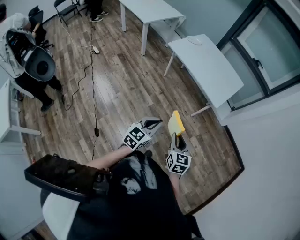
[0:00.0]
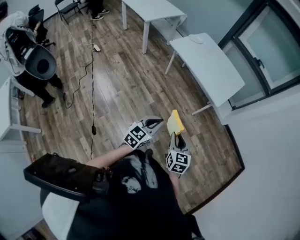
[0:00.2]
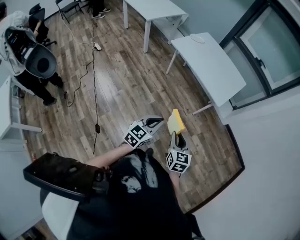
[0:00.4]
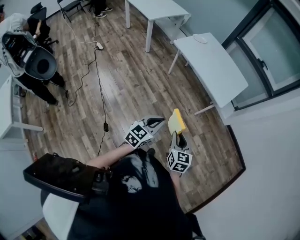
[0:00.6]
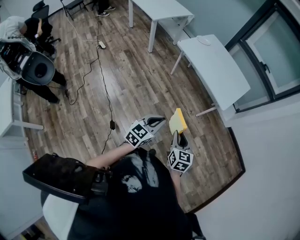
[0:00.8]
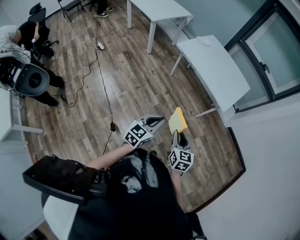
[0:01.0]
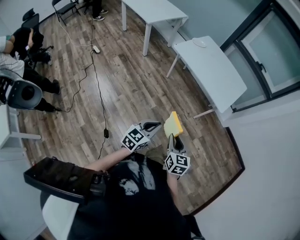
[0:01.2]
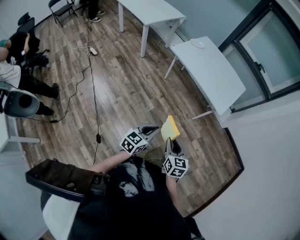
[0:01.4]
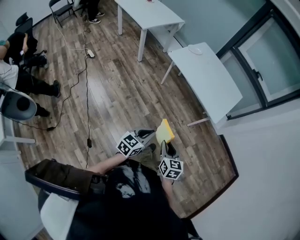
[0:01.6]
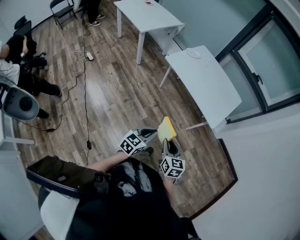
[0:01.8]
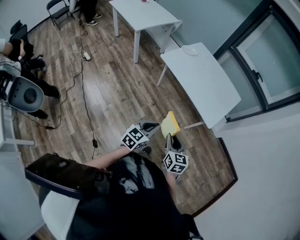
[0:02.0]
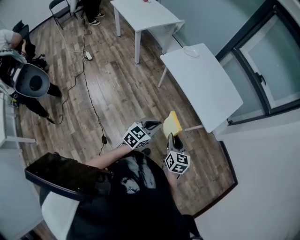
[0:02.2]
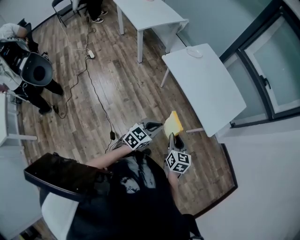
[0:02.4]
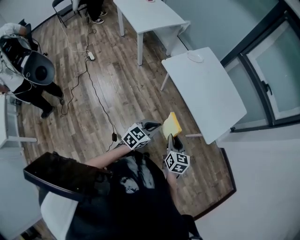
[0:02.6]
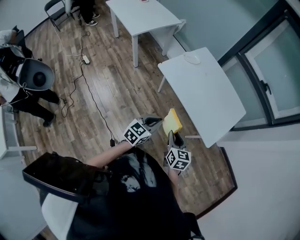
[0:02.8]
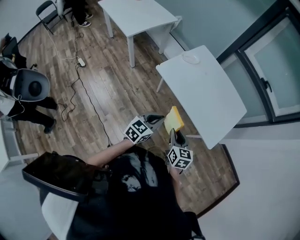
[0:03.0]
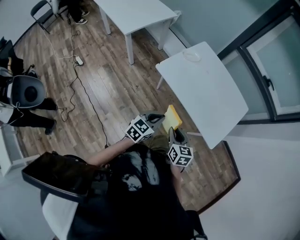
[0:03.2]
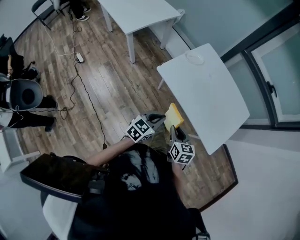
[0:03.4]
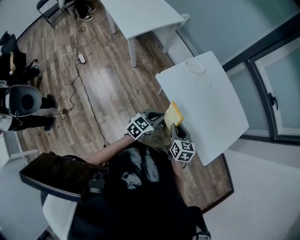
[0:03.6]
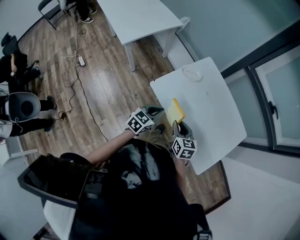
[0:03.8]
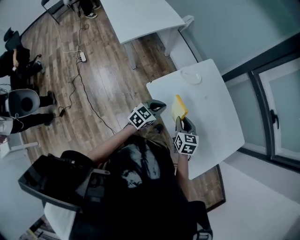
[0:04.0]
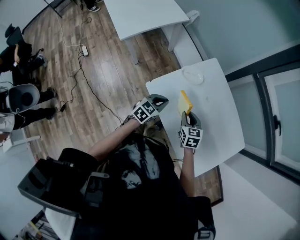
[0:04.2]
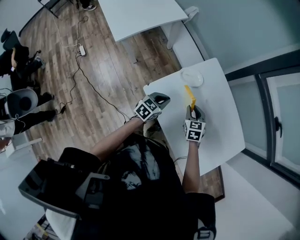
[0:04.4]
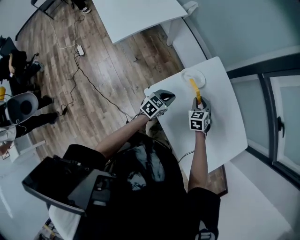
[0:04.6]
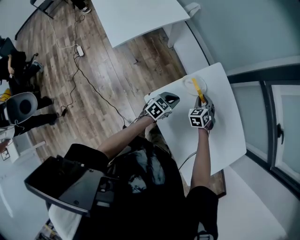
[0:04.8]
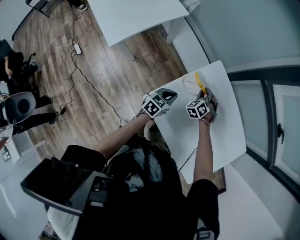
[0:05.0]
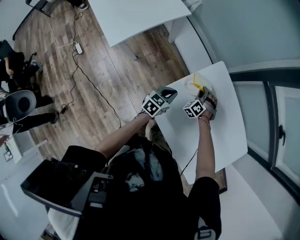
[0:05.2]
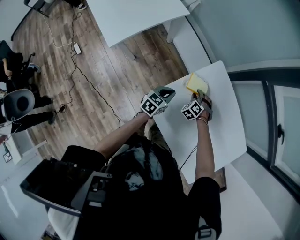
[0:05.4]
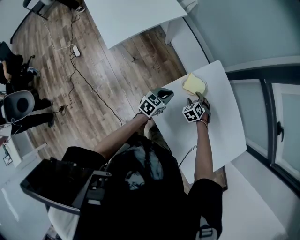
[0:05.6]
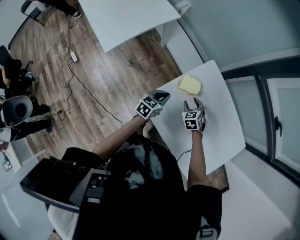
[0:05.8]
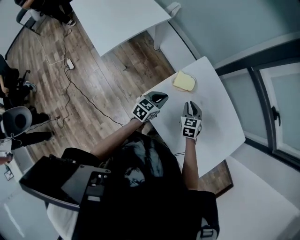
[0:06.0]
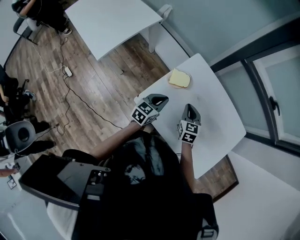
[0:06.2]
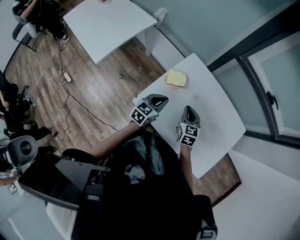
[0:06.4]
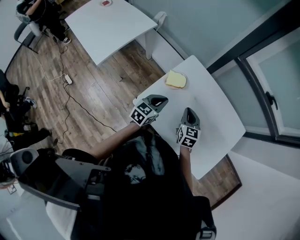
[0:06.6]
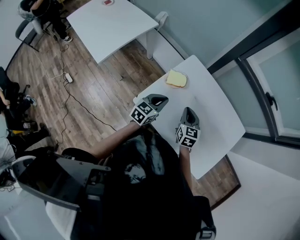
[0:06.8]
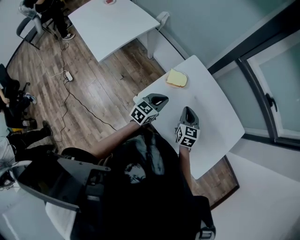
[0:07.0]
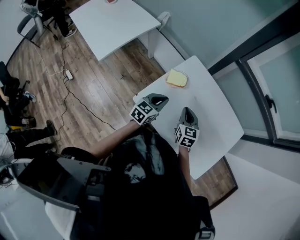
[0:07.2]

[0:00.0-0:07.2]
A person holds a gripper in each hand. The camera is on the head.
0.0 to 1.4 s: The two grippers go some 10 cm to the left.
1.4 to 2.8 s: The grippers both shift forward by approximately 35 cm.
2.8 to 4.4 s: The pair of grippers is taken forward, approximately 50 cm. The right gripper turns by some 30 degrees.
4.4 to 5.8 s: The right gripper goes roughly 10 cm forward, downward and to the left, and opens its fingers. Meanwhile the left gripper is displaced forward and to the left by approximately 10 cm.
5.8 to 7.2 s: The left gripper is displaced upward and to the right by about 15 cm. Meanwhile the right gripper heads upward, backward and to the right, covering roughly 20 cm, swivels some 40 degrees, and closes up.

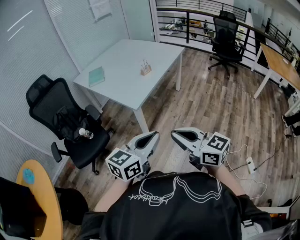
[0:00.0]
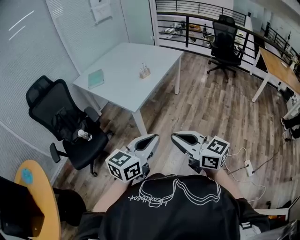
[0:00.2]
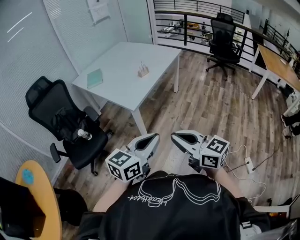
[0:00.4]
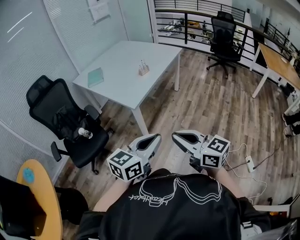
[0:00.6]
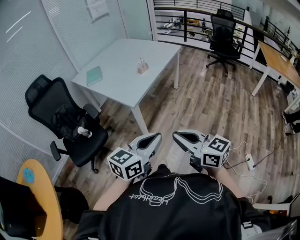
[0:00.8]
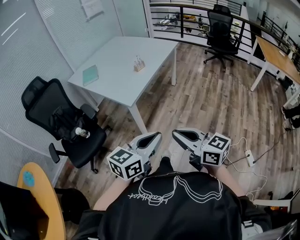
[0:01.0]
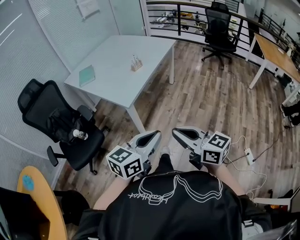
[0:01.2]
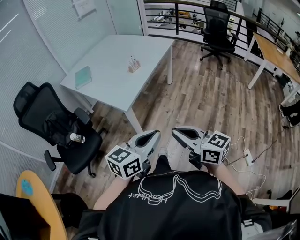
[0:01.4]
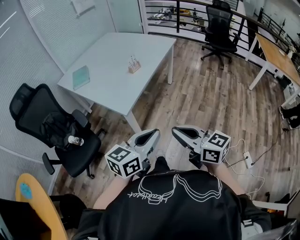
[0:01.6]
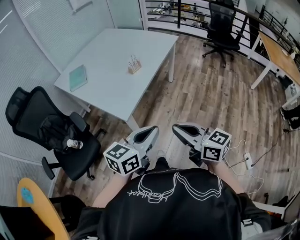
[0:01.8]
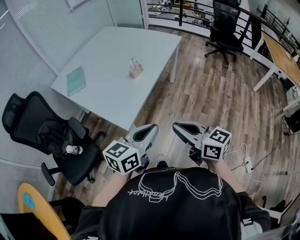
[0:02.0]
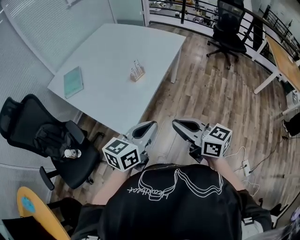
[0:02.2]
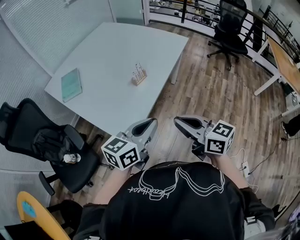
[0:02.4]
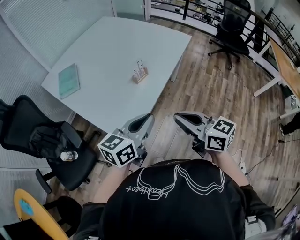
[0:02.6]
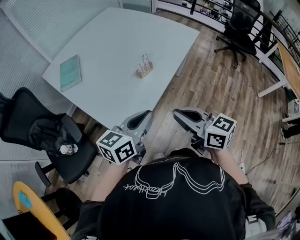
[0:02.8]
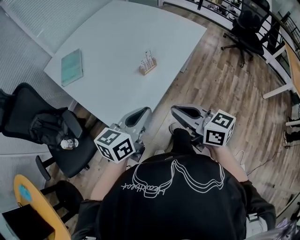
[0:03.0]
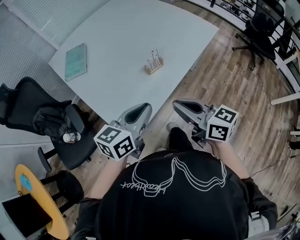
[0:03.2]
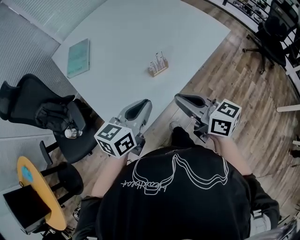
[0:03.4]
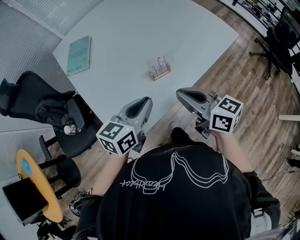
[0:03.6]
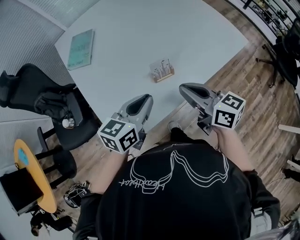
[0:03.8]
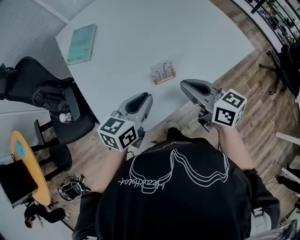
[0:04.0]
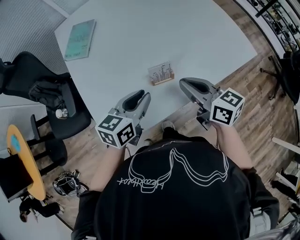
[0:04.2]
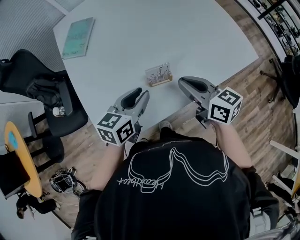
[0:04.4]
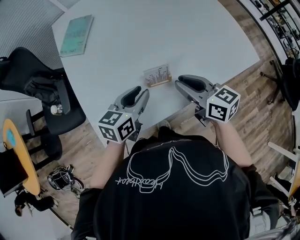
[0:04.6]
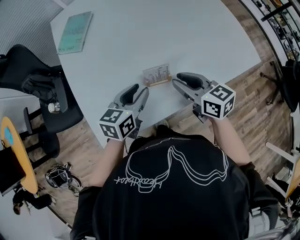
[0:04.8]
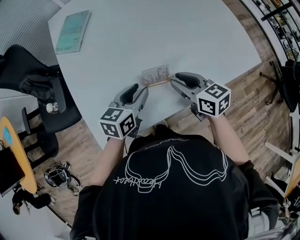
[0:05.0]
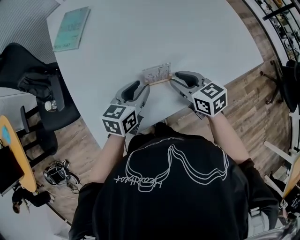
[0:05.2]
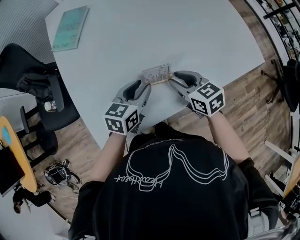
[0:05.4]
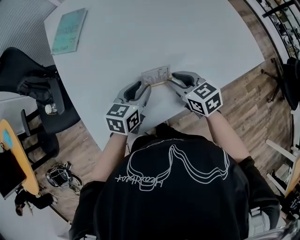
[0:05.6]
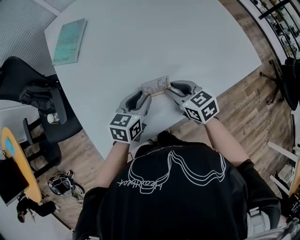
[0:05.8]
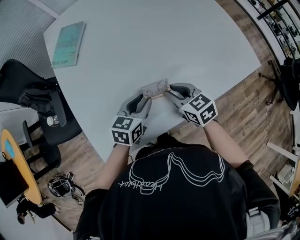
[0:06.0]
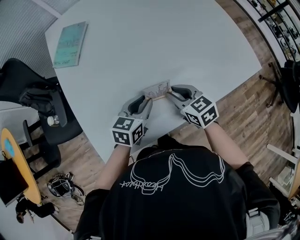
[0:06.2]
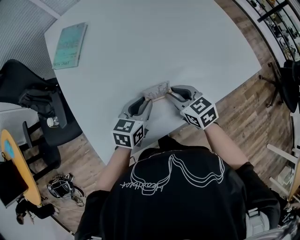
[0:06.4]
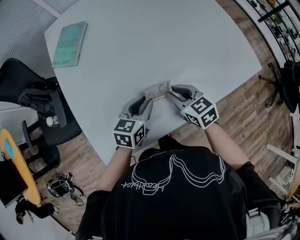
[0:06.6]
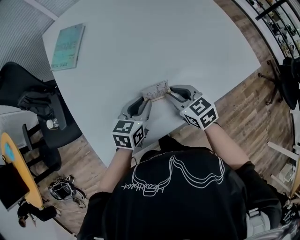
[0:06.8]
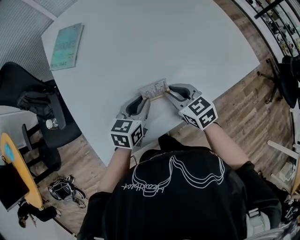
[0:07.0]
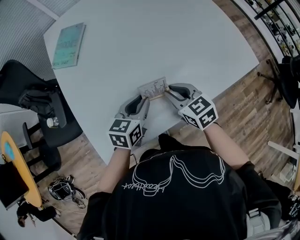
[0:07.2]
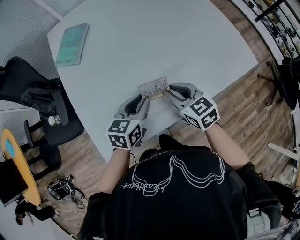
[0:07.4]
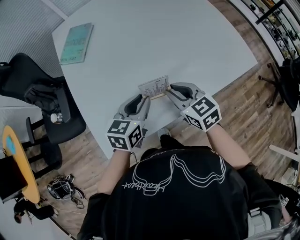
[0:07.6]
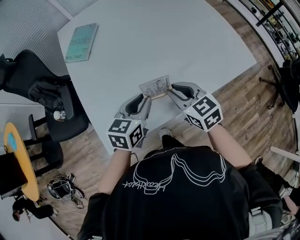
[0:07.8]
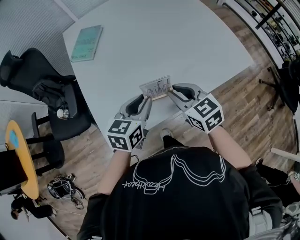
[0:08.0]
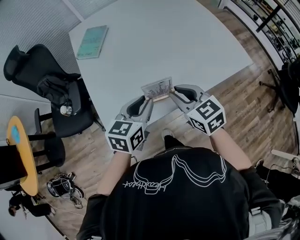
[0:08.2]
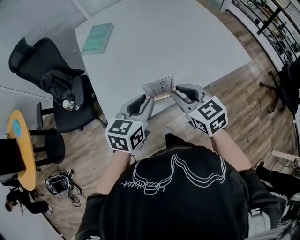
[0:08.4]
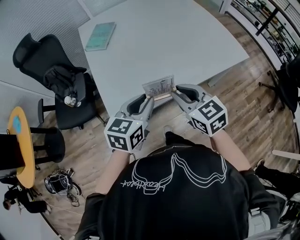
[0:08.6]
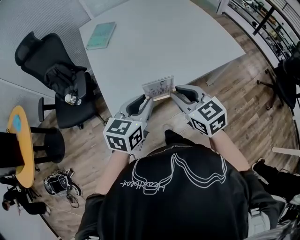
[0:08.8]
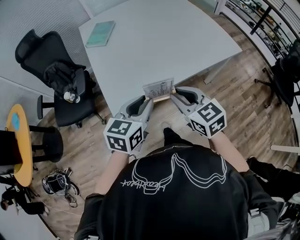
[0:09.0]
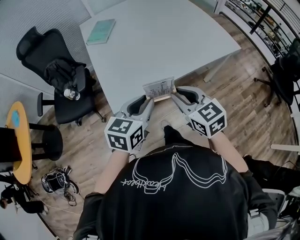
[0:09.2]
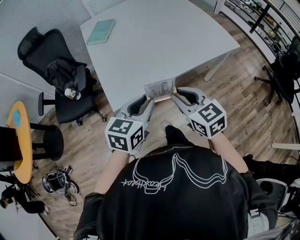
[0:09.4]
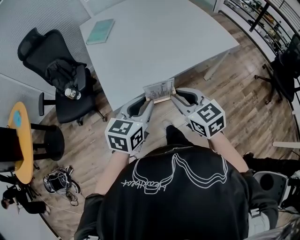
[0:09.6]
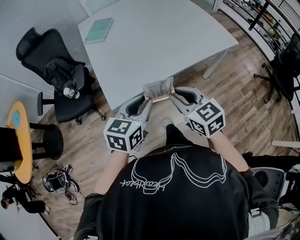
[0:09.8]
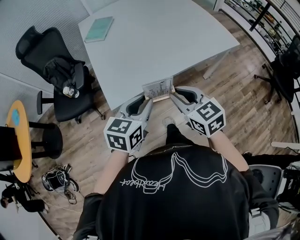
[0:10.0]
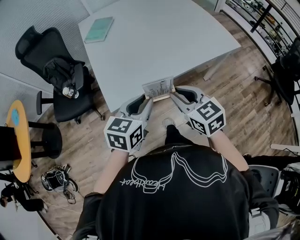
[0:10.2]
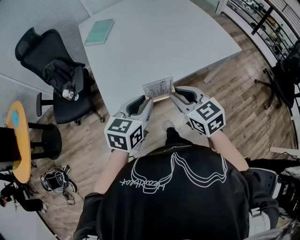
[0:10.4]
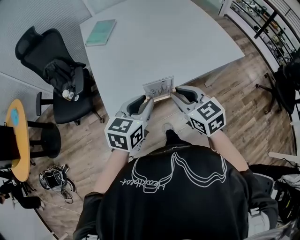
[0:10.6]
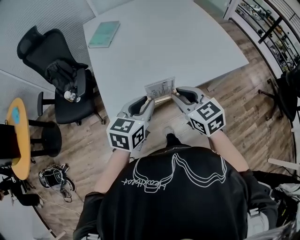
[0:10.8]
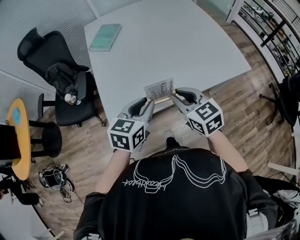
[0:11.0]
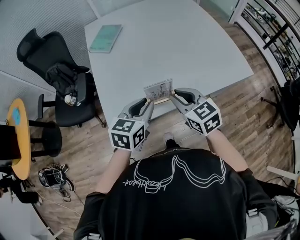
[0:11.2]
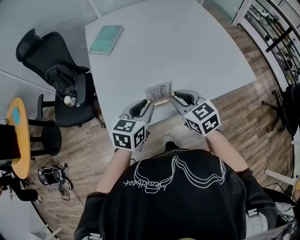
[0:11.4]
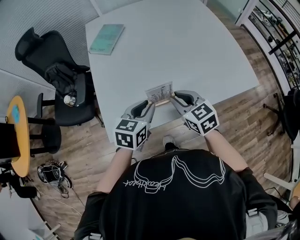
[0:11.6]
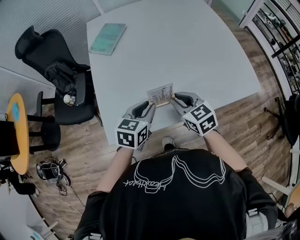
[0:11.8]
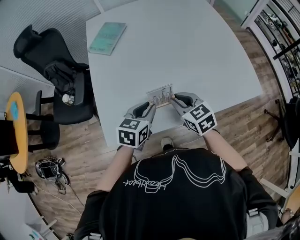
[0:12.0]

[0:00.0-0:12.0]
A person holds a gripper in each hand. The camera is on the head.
0.0 to 1.6 s: The grippers both shift forward by approximately 10 cm.
1.6 to 3.0 s: Both grippers travel together forward, about 35 cm.
3.0 to 4.4 s: The right gripper heads forward, covering approximately 30 cm, and changes its angle by about 20 degrees; the left gripper travels forward and downward by roughly 25 cm, and changes its angle by approximately 30 degrees.
4.4 to 6.0 s: Both grippers travel together downward, about 10 cm. The right gripper turns by roughly 30 degrees.
6.0 to 7.6 s: Both grippers move upward, approximately 5 cm.
7.6 to 9.0 s: Both grippers travel together backward and upward, roughly 30 cm.
9.0 to 10.4 s: The grippers stay close to where they were, moving slightly.
10.4 to 12.0 s: Both grippers move forward and downward, some 25 cm.

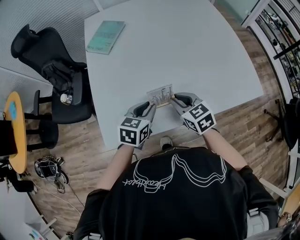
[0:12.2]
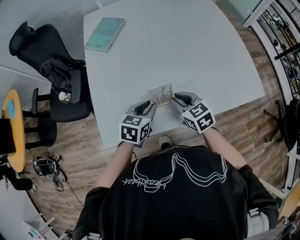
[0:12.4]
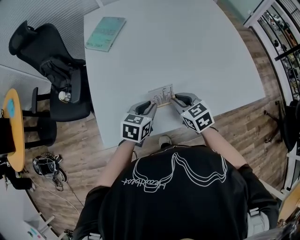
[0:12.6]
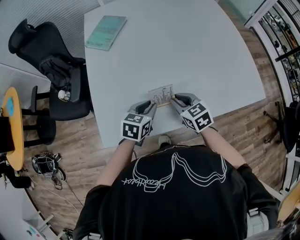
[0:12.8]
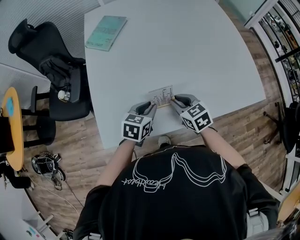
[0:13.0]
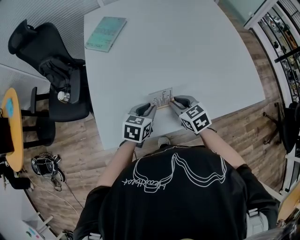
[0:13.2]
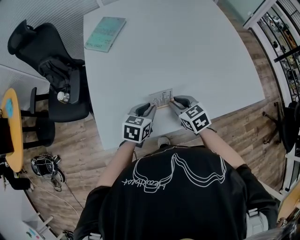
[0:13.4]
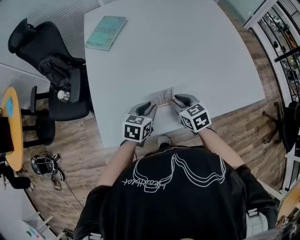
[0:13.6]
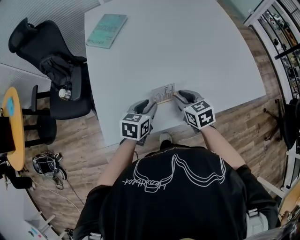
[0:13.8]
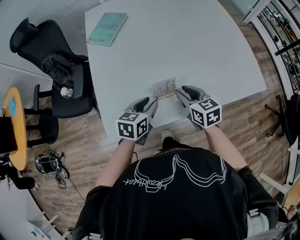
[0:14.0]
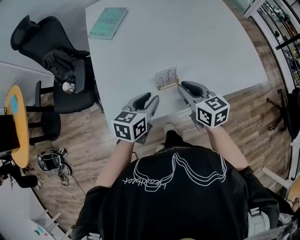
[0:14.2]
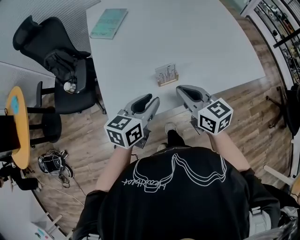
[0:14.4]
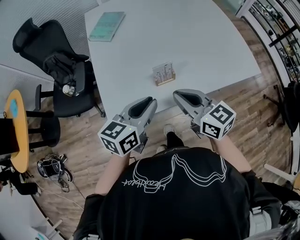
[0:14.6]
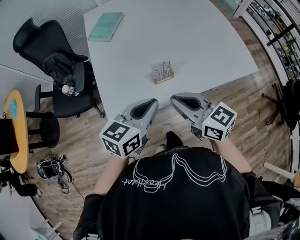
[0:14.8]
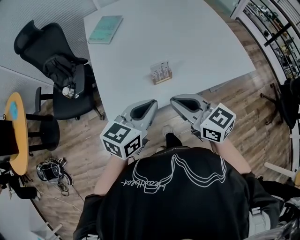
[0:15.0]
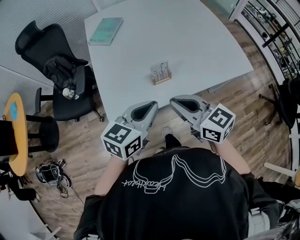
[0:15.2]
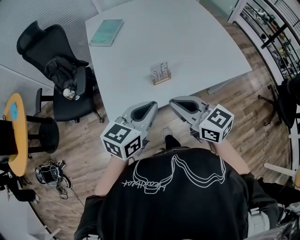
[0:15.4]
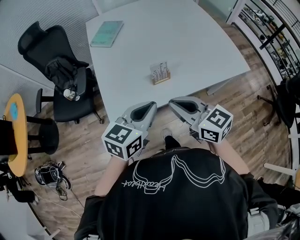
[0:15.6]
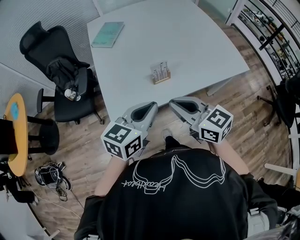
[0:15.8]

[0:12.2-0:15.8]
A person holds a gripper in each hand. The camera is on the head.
12.2 to 14.0 s: The grippers move only a little.
14.0 to 15.8 s: The left gripper heads upward and backward, covering roughly 25 cm, turns by some 20 degrees, and closes its fingers, while the right gripper shifts some 25 cm backward and upward, swivels roughly 20 degrees, and closes.

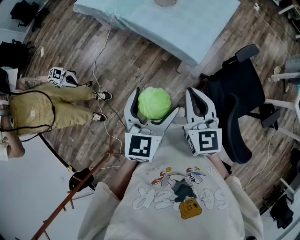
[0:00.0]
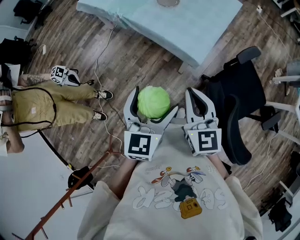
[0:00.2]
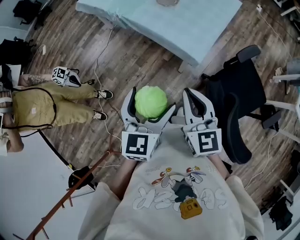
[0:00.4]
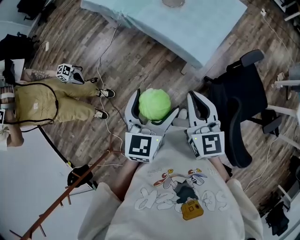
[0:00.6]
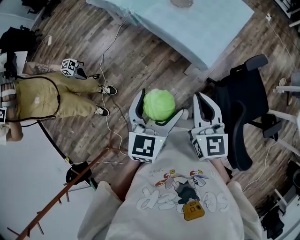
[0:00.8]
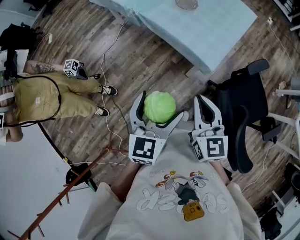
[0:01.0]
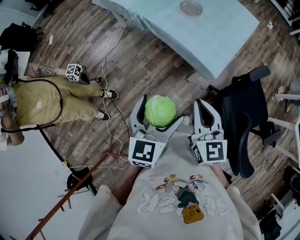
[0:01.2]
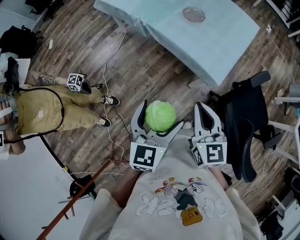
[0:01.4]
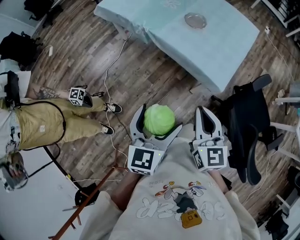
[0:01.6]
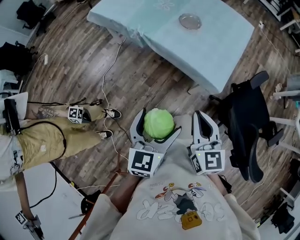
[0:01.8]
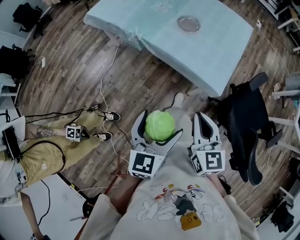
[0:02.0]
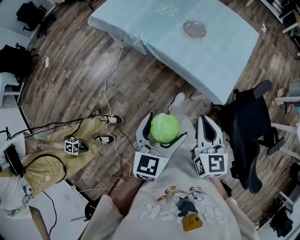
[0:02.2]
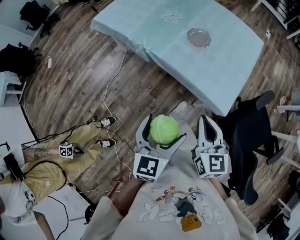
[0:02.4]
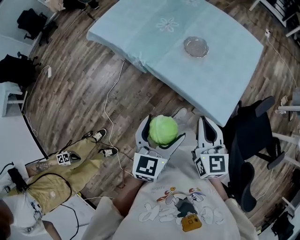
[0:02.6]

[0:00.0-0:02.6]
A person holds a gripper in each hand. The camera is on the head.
0.0 to 1.2 s: Both grippers move to the left, some 5 cm.
1.2 to 2.6 s: The grippers both shift forward by about 20 cm.
